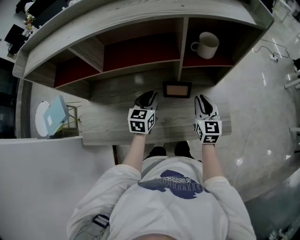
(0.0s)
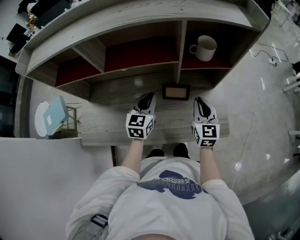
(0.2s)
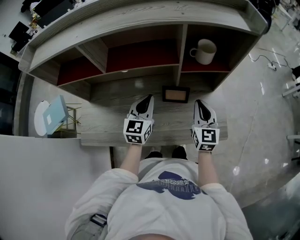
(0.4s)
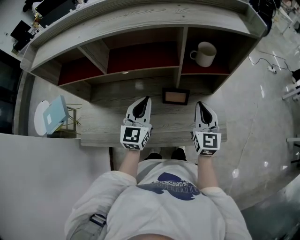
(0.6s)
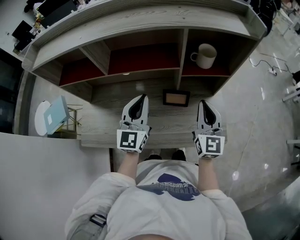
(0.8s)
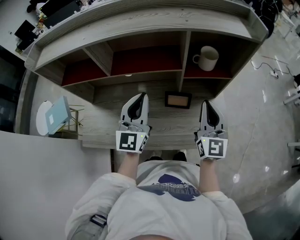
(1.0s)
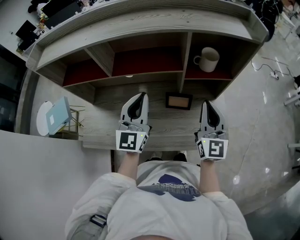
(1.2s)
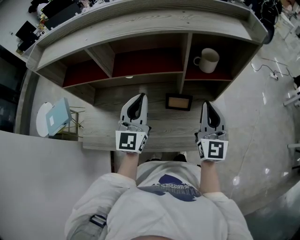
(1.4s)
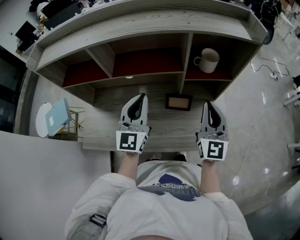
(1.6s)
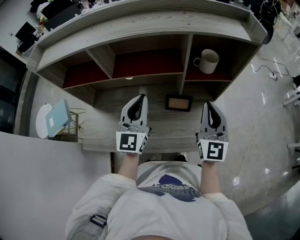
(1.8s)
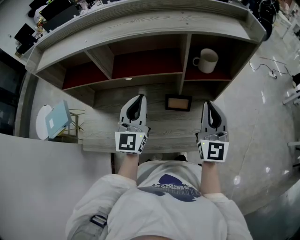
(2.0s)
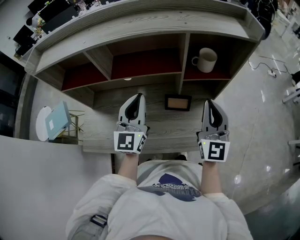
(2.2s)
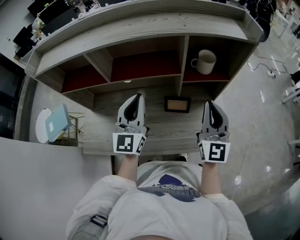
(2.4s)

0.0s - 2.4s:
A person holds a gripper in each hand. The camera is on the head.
0.0s - 1.2s: Both grippers move upward, about 15 cm. The left gripper points its fingers some 30 degrees further upward. The right gripper rotates approximately 20 degrees.
1.2s - 2.4s: The grippers move only a little.

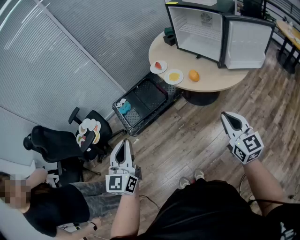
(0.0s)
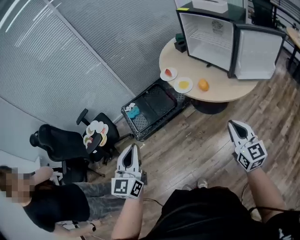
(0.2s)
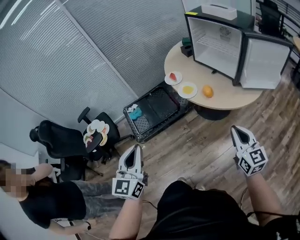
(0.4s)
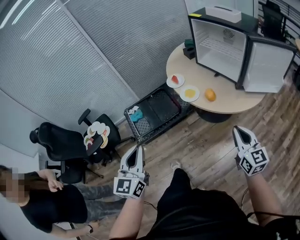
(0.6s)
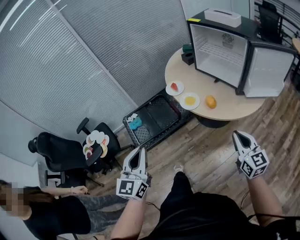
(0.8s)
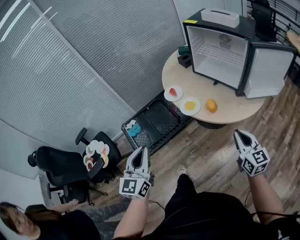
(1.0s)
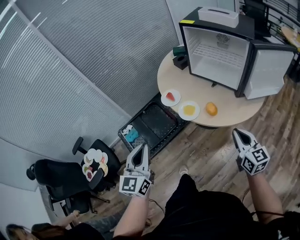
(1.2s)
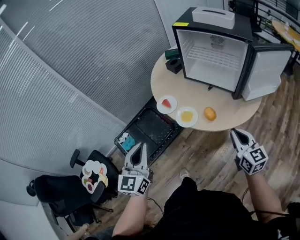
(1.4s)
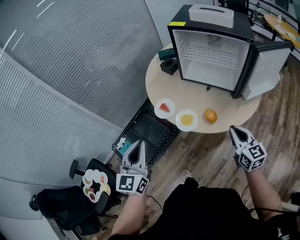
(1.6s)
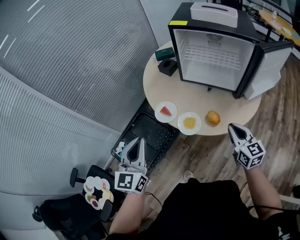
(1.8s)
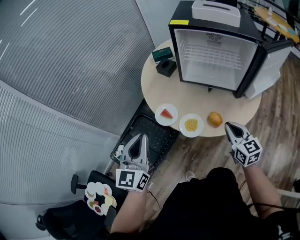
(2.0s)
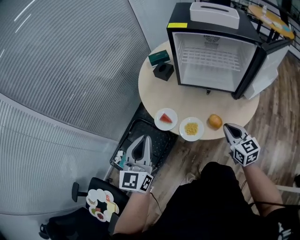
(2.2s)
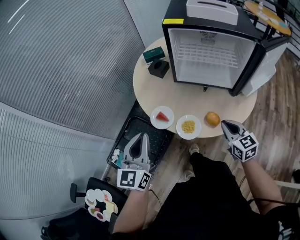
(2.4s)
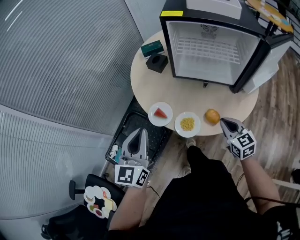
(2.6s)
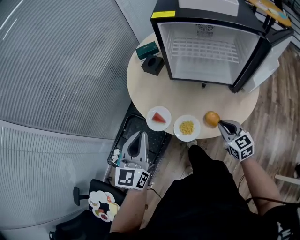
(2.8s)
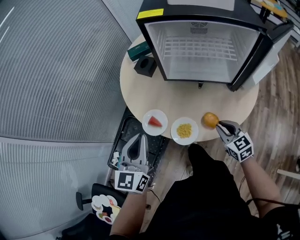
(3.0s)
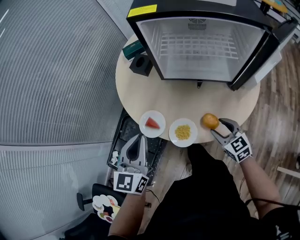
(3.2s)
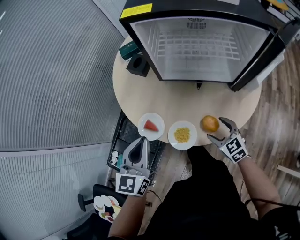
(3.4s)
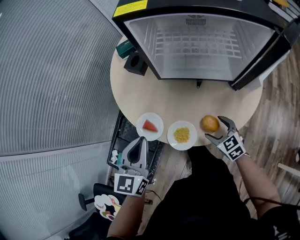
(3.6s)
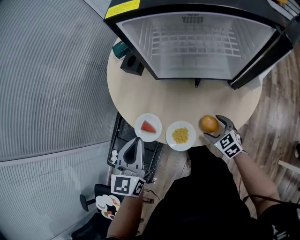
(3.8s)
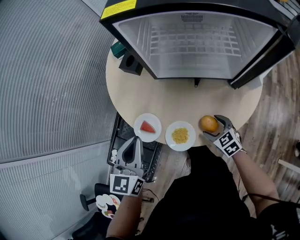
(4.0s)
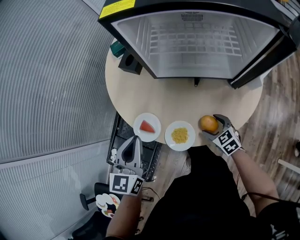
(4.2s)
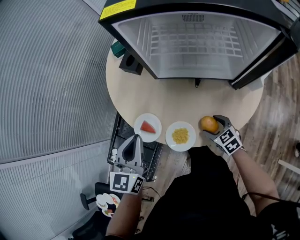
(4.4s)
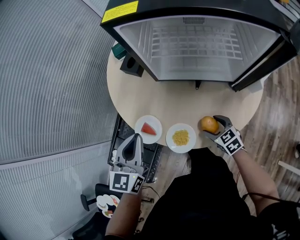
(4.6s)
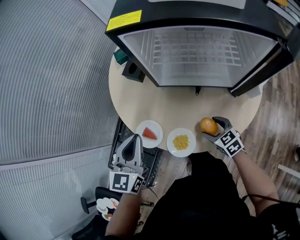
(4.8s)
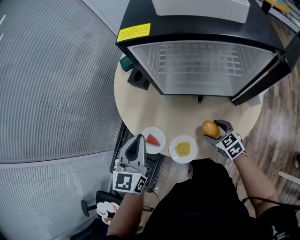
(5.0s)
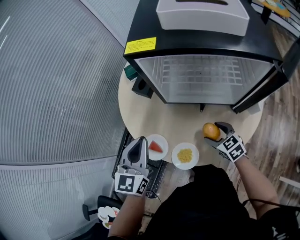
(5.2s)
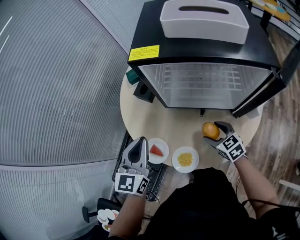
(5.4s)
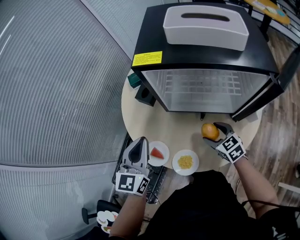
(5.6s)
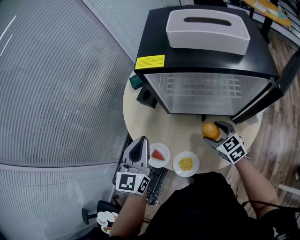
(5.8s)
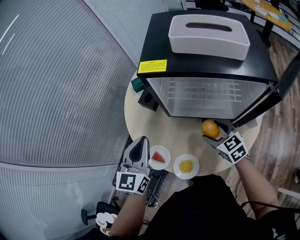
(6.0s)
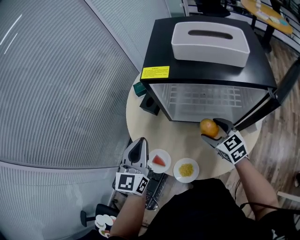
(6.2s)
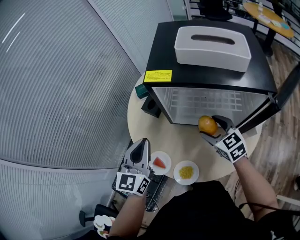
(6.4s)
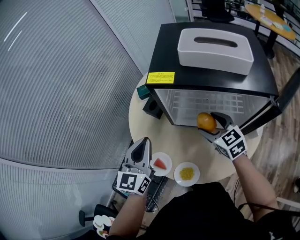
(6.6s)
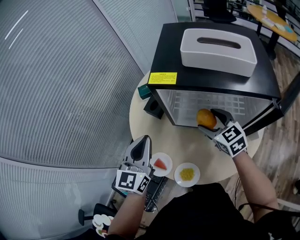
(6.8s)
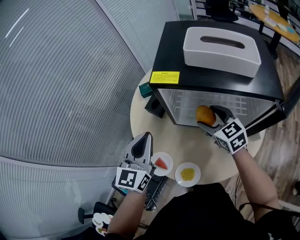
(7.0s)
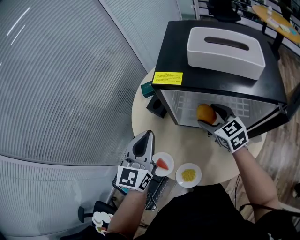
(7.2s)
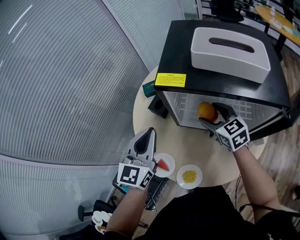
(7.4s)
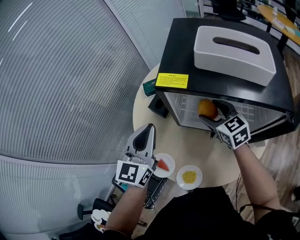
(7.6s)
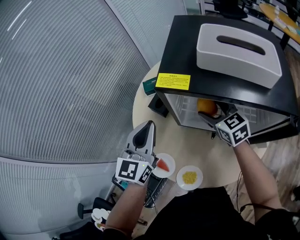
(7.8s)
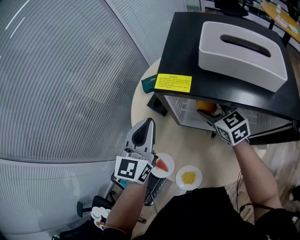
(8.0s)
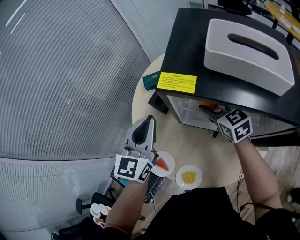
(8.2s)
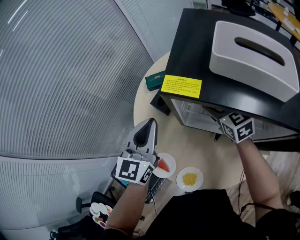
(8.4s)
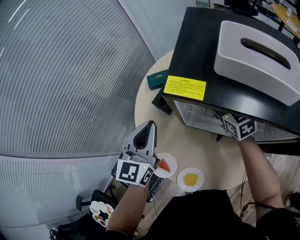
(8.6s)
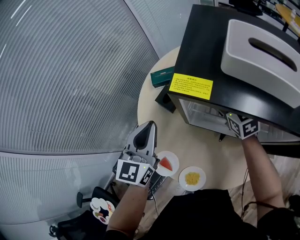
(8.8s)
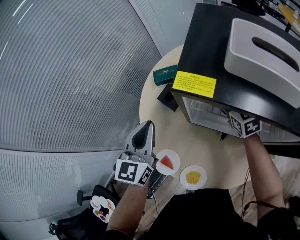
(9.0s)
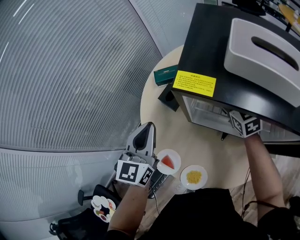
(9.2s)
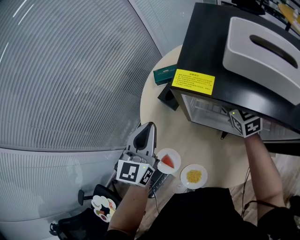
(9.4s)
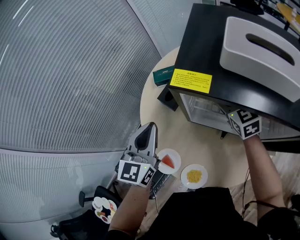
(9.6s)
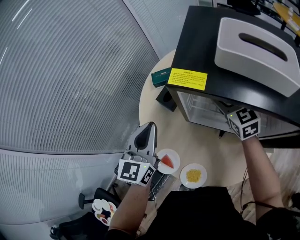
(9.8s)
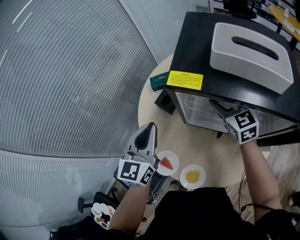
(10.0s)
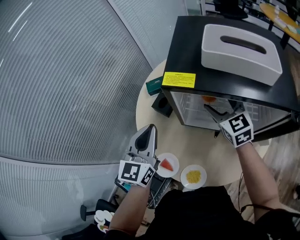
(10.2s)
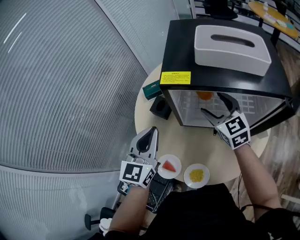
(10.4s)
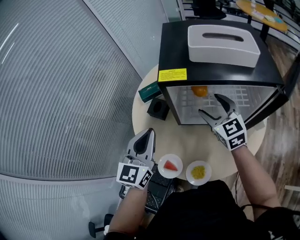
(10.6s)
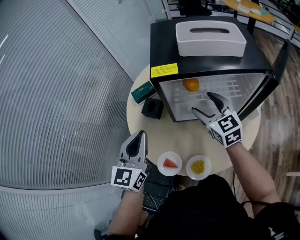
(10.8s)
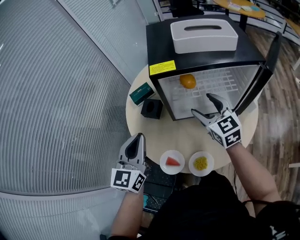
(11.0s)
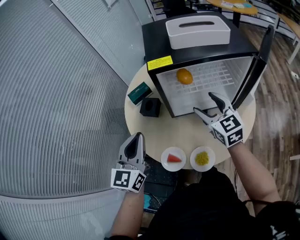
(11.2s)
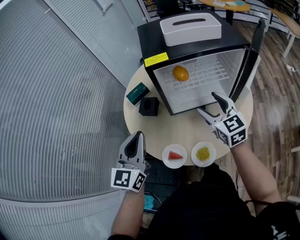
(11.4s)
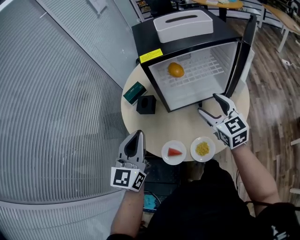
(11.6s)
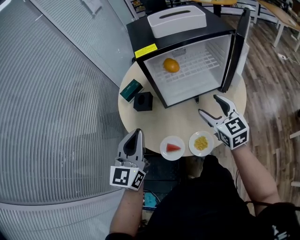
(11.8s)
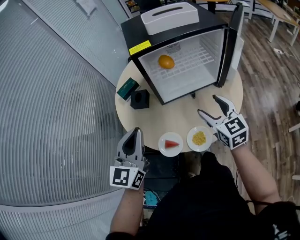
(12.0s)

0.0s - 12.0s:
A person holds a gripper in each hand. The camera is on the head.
0.0s - 1.6s: Both grippers travel together forward, approximately 35 cm. The right gripper turns by roughly 20 degrees; the left gripper swivels roughly 20 degrees.
1.6s - 3.0s: The left gripper travels forward by roughly 20 cm; the right gripper goes about 20 cm downward and forward.
3.0s - 4.4s: The right gripper is displaced downward by roughly 10 cm, and opens up. Meanwhile the left gripper is displaced forward and downward by approximately 10 cm.
4.4s - 6.0s: The left gripper goes roughly 15 cm upward and forward; the right gripper is displaced upward and forward by approximately 25 cm.
6.0s - 7.6s: The right gripper moves forward and upward, some 15 cm. The left gripper heads forward, covering roughly 5 cm.
7.6s - 9.0s: The right gripper shifts roughly 10 cm forward. The left gripper moves about 5 cm.
9.0s - 10.4s: The right gripper is displaced backward and upward by approximately 10 cm, while the left gripper moves some 5 cm.
10.4s - 12.0s: The left gripper travels backward by about 15 cm, and rotates some 20 degrees; the right gripper travels backward by about 25 cm, and changes its angle by some 30 degrees.

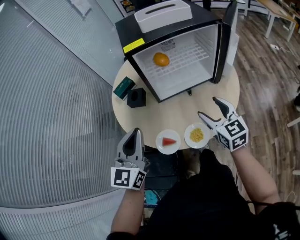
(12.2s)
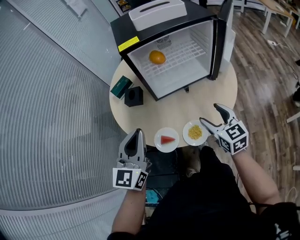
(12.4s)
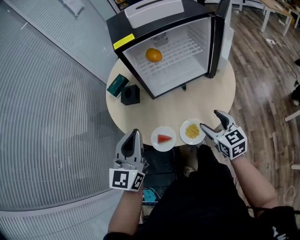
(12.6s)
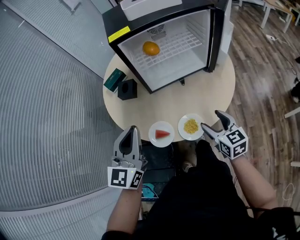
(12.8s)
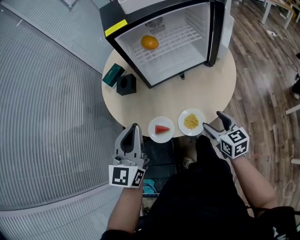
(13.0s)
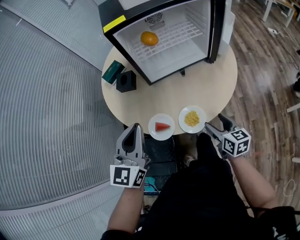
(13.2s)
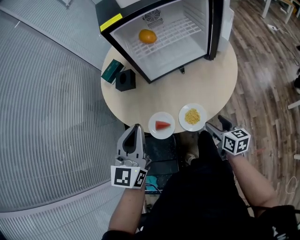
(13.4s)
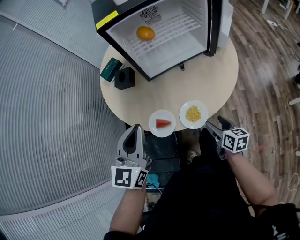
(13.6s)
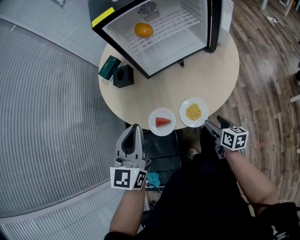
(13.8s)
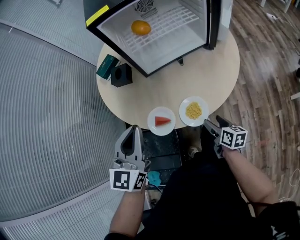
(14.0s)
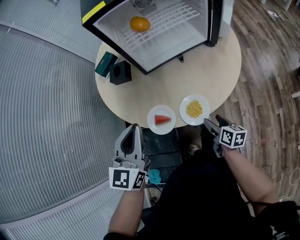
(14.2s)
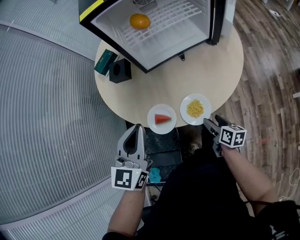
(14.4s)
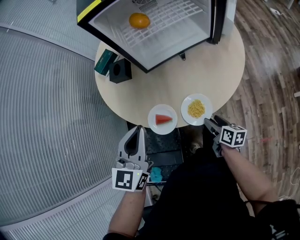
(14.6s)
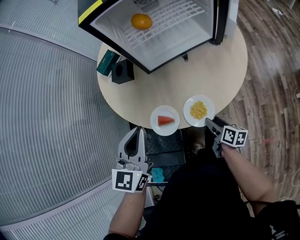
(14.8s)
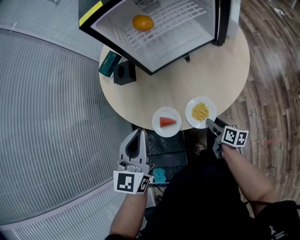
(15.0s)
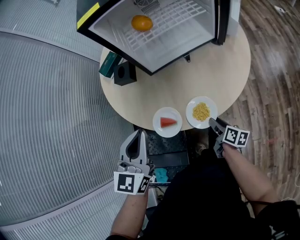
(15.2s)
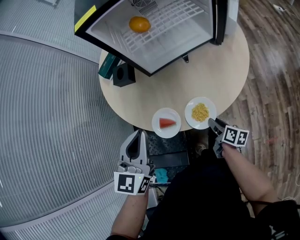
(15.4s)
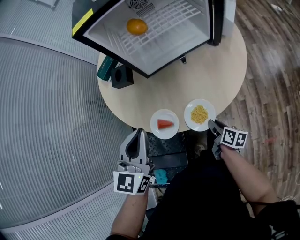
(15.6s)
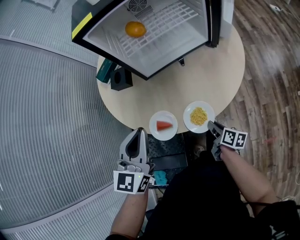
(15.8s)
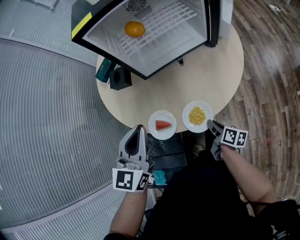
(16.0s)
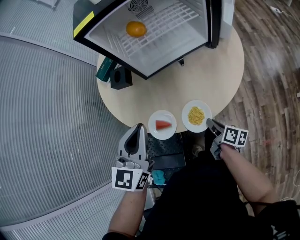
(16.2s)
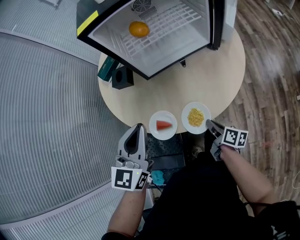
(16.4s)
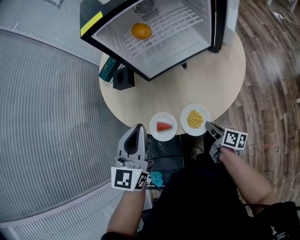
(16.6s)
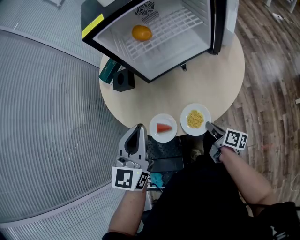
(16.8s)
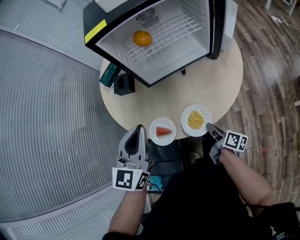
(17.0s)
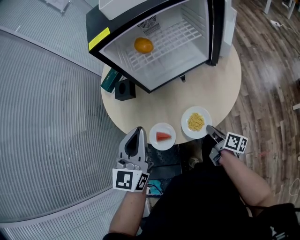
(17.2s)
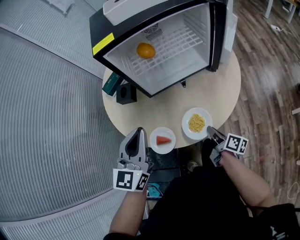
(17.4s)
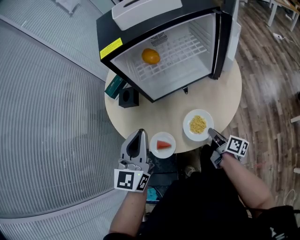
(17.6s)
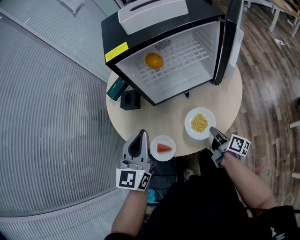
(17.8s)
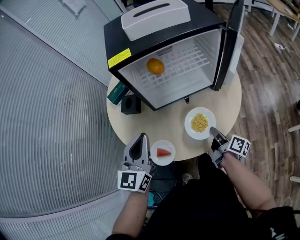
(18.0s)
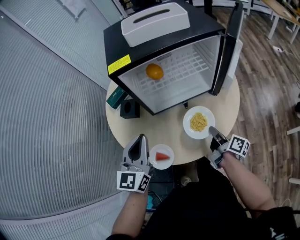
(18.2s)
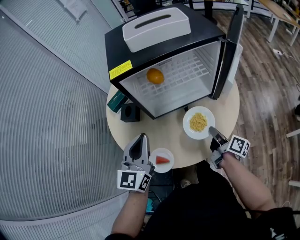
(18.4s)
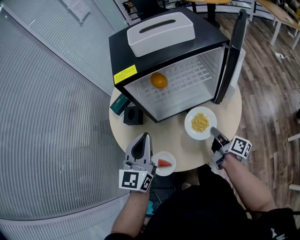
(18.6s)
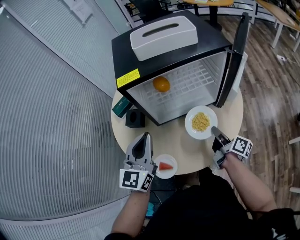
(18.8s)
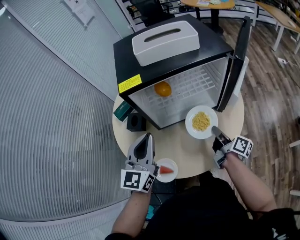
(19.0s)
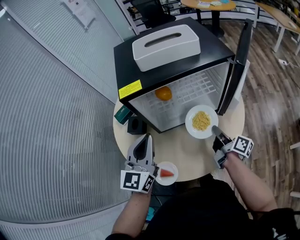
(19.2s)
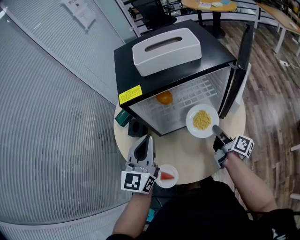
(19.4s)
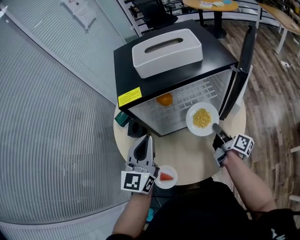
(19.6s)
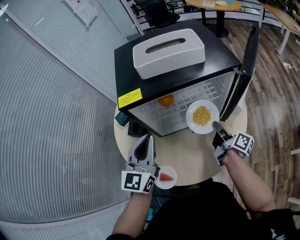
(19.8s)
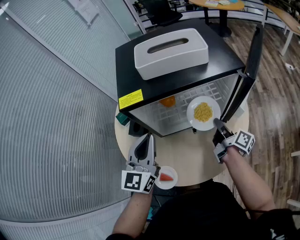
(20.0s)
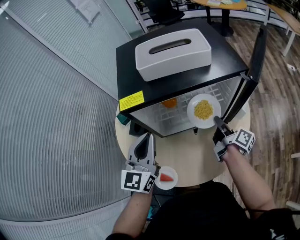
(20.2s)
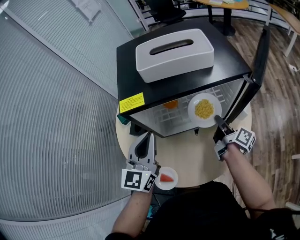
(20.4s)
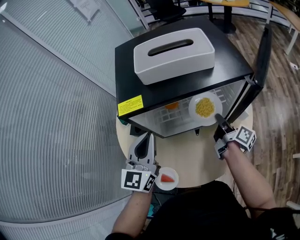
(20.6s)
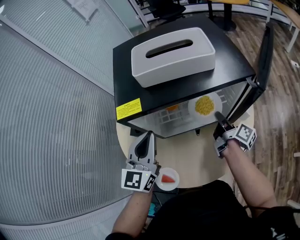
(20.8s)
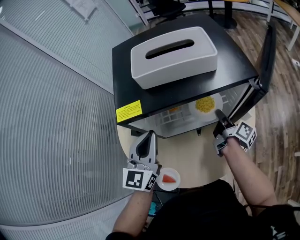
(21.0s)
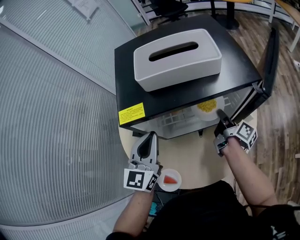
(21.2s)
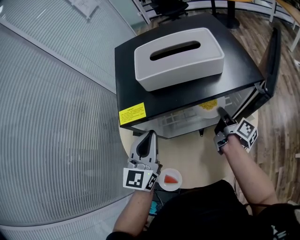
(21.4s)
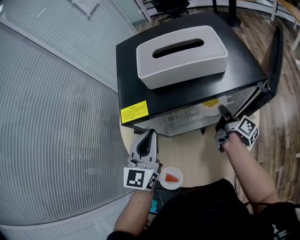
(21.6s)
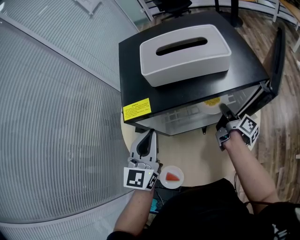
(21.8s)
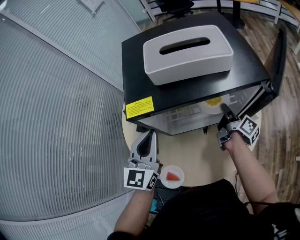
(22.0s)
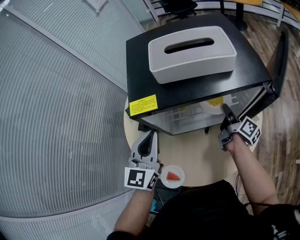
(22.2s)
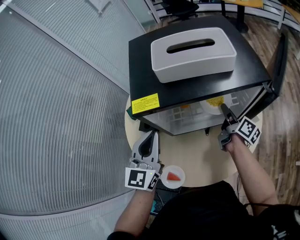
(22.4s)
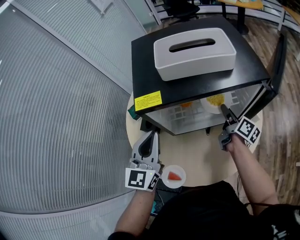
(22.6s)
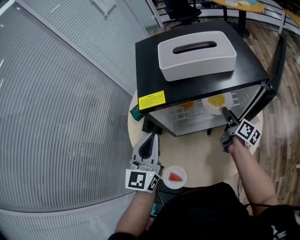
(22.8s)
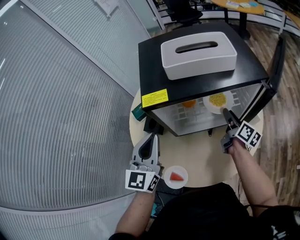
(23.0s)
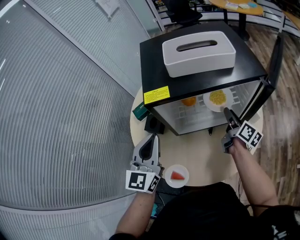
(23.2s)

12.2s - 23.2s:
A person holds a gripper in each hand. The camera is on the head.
12.2s - 13.8s: The right gripper travels downward and backward by approximately 25 cm, and twists roughly 40 degrees clockwise, seen from behind. The left gripper goes roughly 5 cm downward.
13.8s - 15.4s: The right gripper is displaced downward by approximately 10 cm, rotates some 20 degrees, and closes up.
15.4s - 17.0s: The left gripper moves about 5 cm; the right gripper goes about 5 cm upward, and closes up.
17.0s - 18.4s: The left gripper travels forward by about 10 cm; the right gripper is displaced forward, upward and to the right by approximately 20 cm.
18.4s - 20.0s: The left gripper travels forward by roughly 10 cm. Meanwhile the right gripper is displaced forward and upward by approximately 15 cm.
20.0s - 21.6s: Both grippers travel together forward, about 10 cm.
21.6s - 23.2s: The right gripper turns by some 20 degrees, and opens up; the left gripper shifts roughly 5 cm backward.
